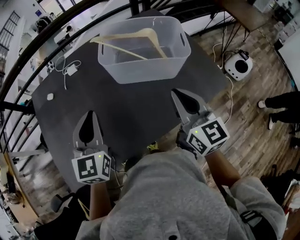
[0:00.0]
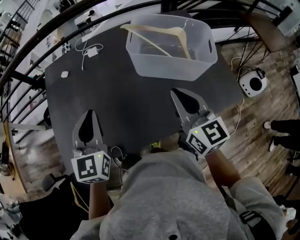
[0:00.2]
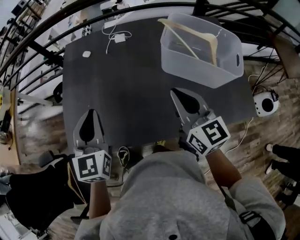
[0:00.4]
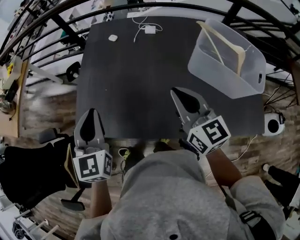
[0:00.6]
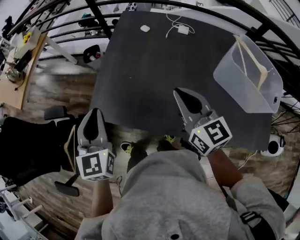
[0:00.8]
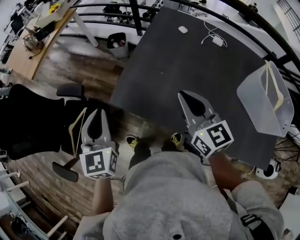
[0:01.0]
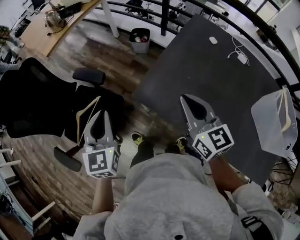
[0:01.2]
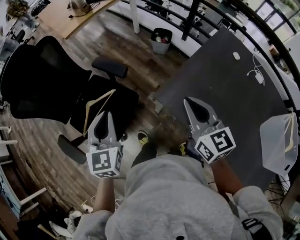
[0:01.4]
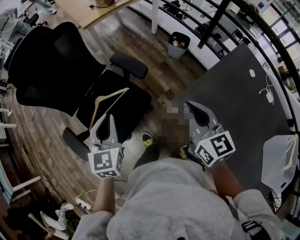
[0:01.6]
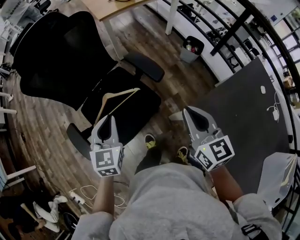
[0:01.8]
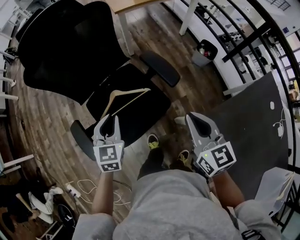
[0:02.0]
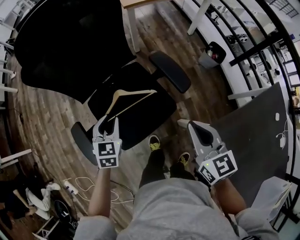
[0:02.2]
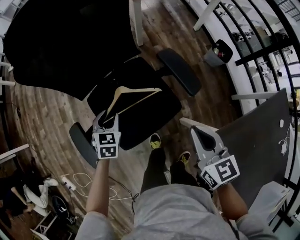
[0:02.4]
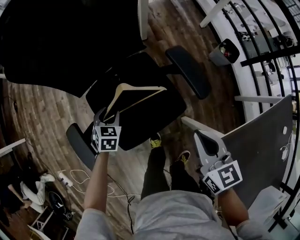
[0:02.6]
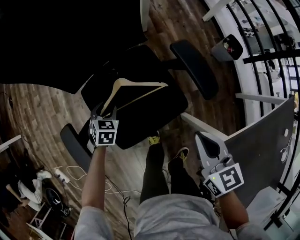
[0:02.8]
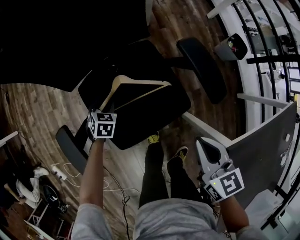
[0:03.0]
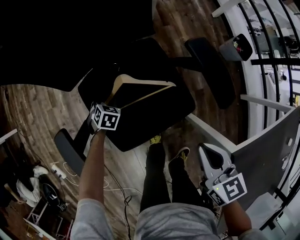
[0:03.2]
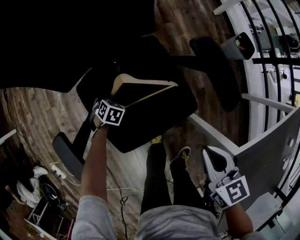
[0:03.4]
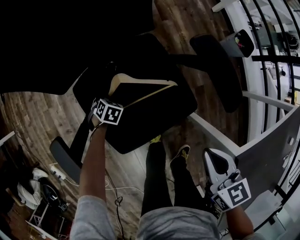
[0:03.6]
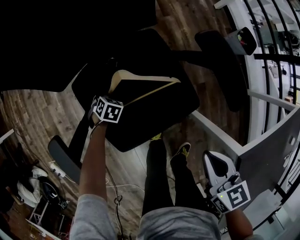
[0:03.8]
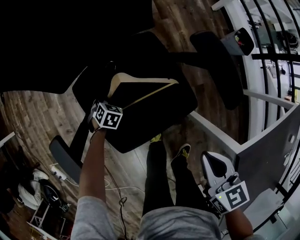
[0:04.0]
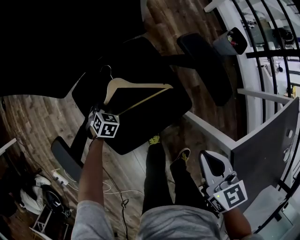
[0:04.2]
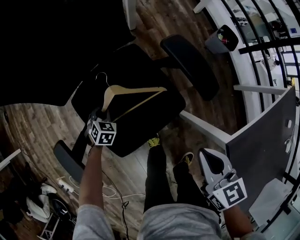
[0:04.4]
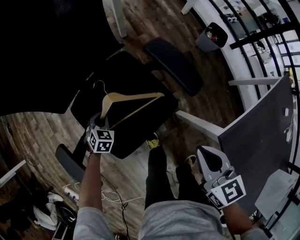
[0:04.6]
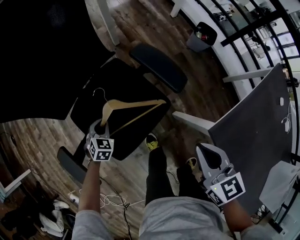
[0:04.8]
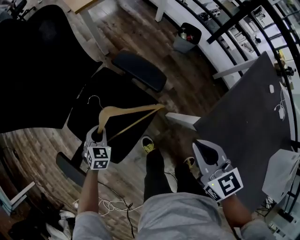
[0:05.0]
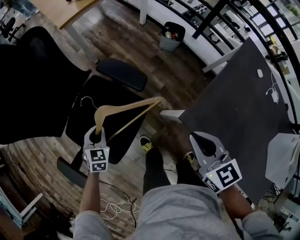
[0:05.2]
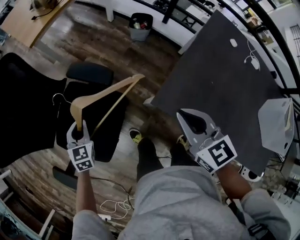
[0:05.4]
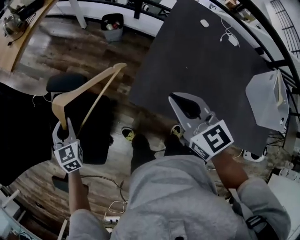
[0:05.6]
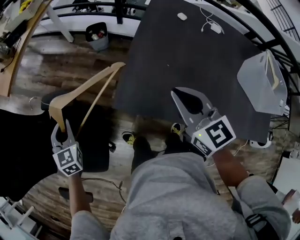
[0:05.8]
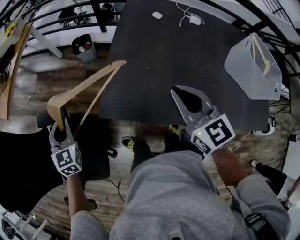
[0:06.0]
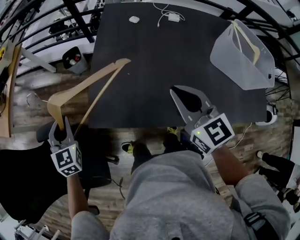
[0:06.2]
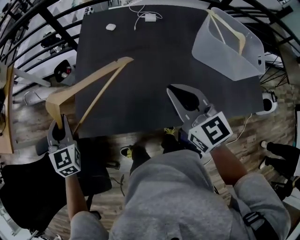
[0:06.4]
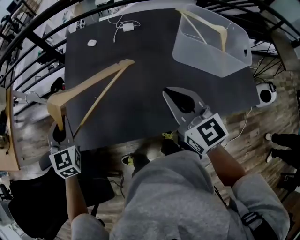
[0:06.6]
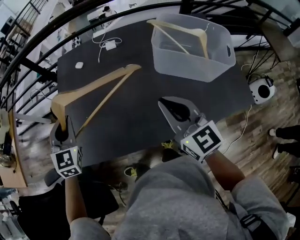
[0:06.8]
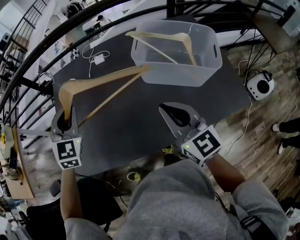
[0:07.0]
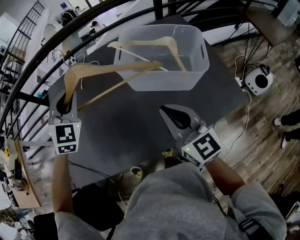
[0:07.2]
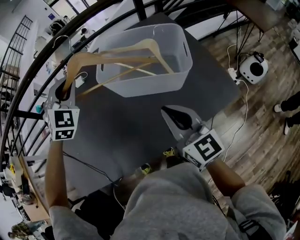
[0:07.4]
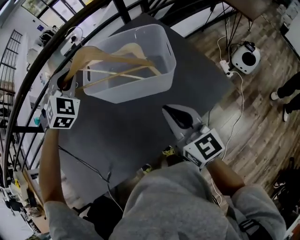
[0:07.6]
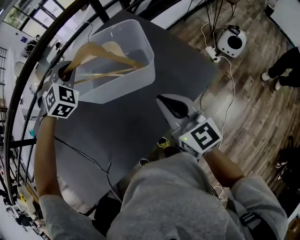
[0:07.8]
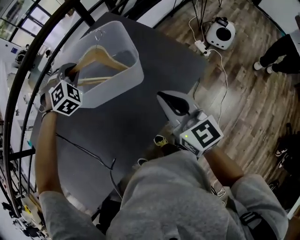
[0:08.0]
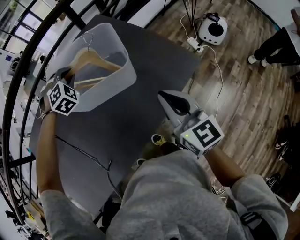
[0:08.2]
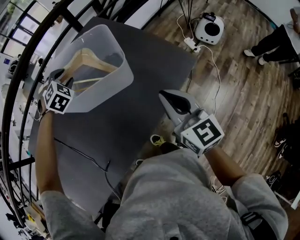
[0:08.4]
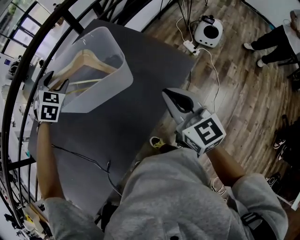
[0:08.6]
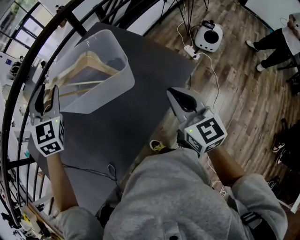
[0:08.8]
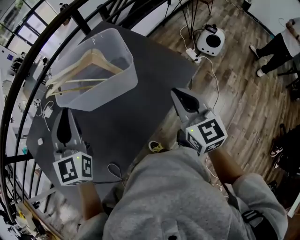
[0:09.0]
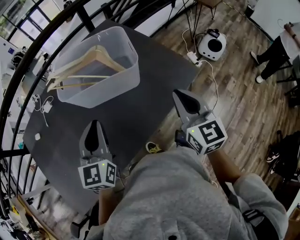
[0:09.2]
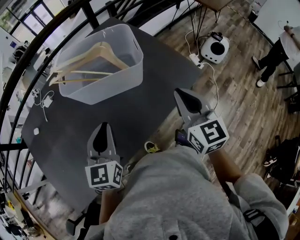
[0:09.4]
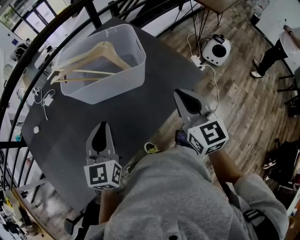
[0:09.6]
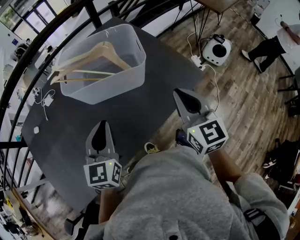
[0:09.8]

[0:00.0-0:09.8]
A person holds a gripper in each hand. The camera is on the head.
0:00.0 to 0:01.4: The pair of grippers is taken about 70 cm. The left gripper turns by some 70 degrees. The right gripper turns by some 70 degrees.
0:01.4 to 0:02.8: The right gripper ends up approximately 35 cm from where it was, and turns by roughly 40 degrees. Meanwhile the left gripper shifts roughly 40 cm downward, tips its fingers downward by some 40 degrees, and opens its fingers.
0:02.8 to 0:04.2: The right gripper is displaced downward by some 5 cm, while the left gripper is displaced downward by approximately 15 cm, and closes its fingers.
0:04.2 to 0:05.6: The left gripper goes approximately 35 cm upward, and angles its fingers upward, by approximately 30 degrees; the right gripper ends up some 35 cm from where it was, and turns by roughly 40 degrees.
0:05.6 to 0:07.0: The two grippers travel together, about 60 cm. The left gripper rotates roughly 60 degrees. The right gripper changes its angle by roughly 40 degrees.
0:07.0 to 0:08.4: The left gripper shifts by some 50 cm, rotates around the line of its fingers by some 40 degrees, clockwise from behind, and opens, while the right gripper moves some 30 cm, and turns by roughly 40 degrees.
0:08.4 to 0:09.8: The left gripper moves backward, roughly 30 cm, rolls counterclockwise, seen from behind, by approximately 70 degrees, and closes its fingers.

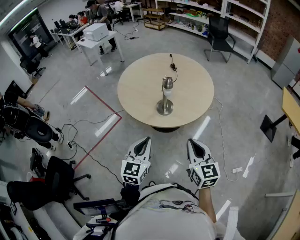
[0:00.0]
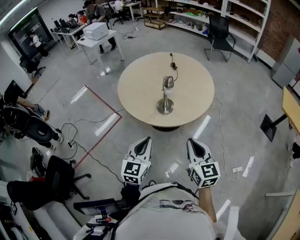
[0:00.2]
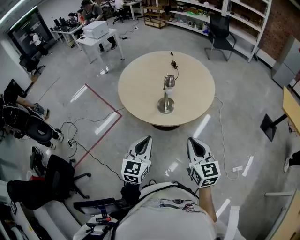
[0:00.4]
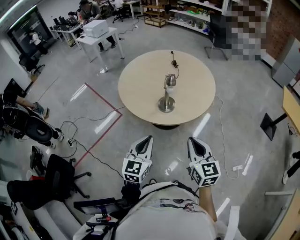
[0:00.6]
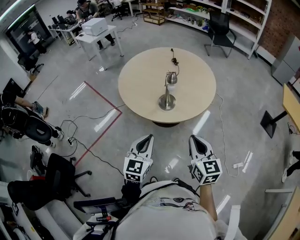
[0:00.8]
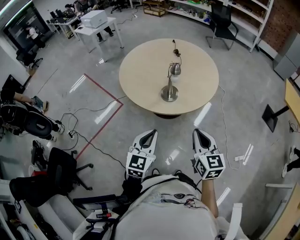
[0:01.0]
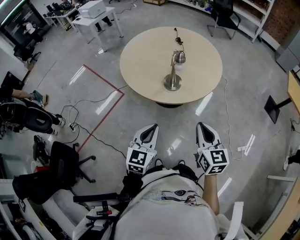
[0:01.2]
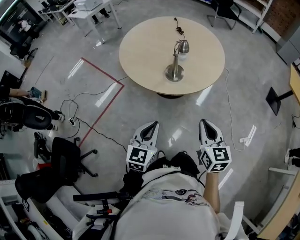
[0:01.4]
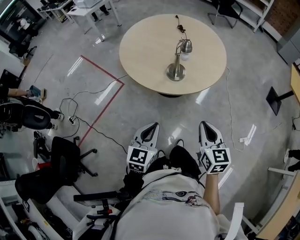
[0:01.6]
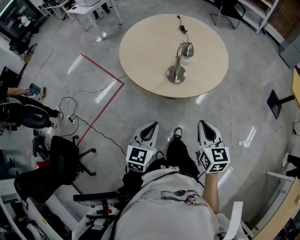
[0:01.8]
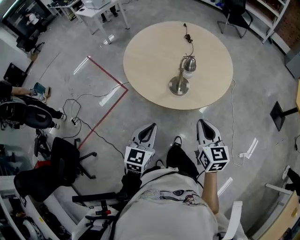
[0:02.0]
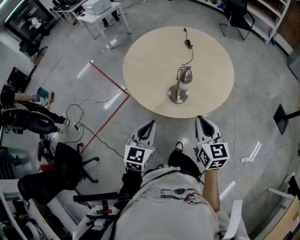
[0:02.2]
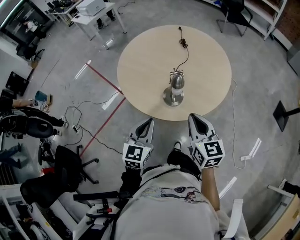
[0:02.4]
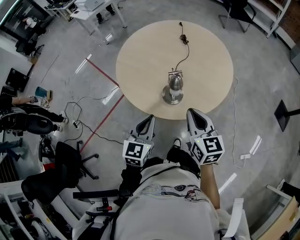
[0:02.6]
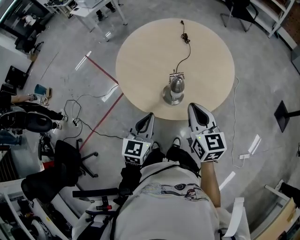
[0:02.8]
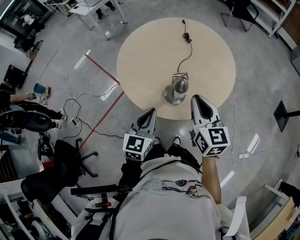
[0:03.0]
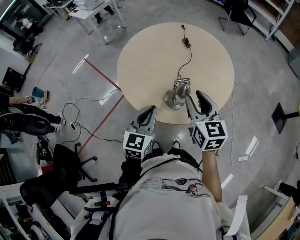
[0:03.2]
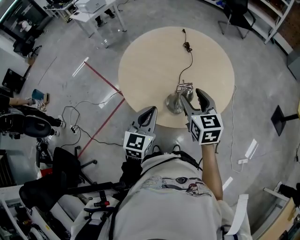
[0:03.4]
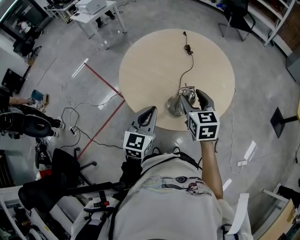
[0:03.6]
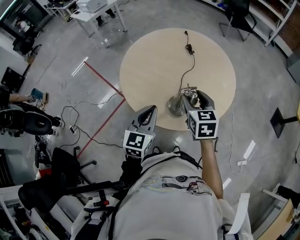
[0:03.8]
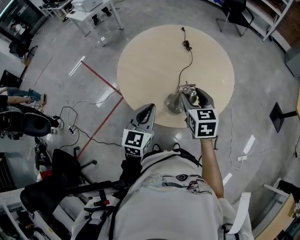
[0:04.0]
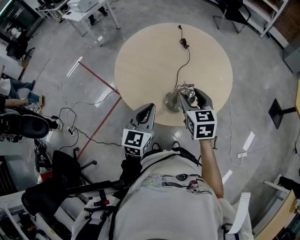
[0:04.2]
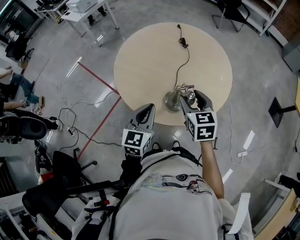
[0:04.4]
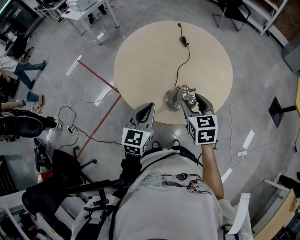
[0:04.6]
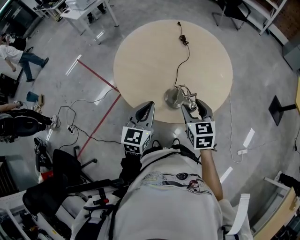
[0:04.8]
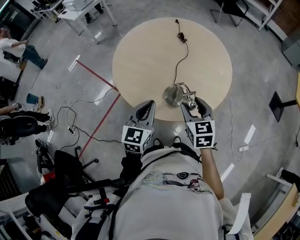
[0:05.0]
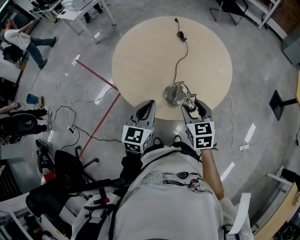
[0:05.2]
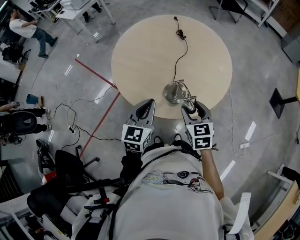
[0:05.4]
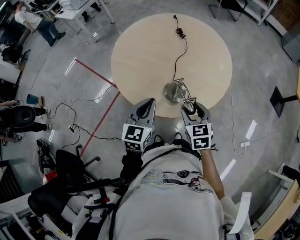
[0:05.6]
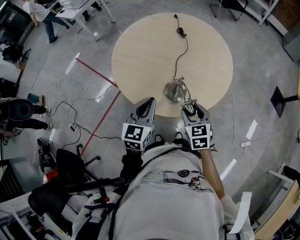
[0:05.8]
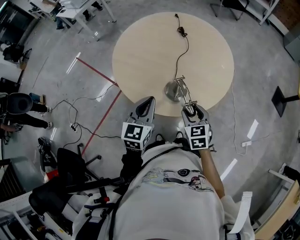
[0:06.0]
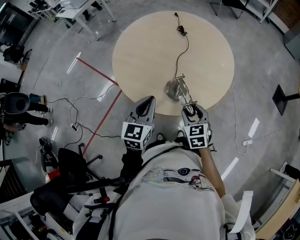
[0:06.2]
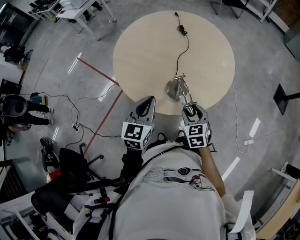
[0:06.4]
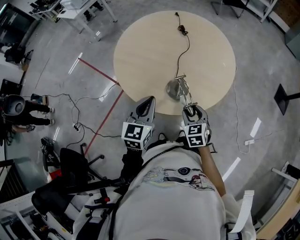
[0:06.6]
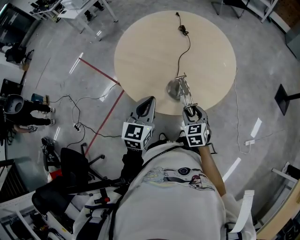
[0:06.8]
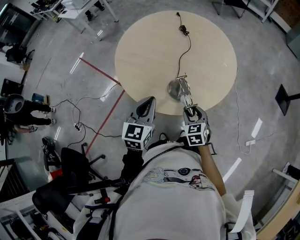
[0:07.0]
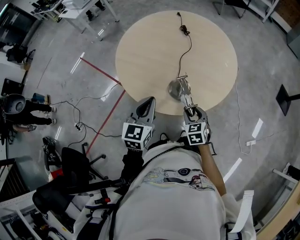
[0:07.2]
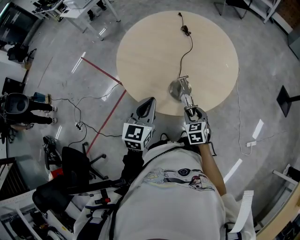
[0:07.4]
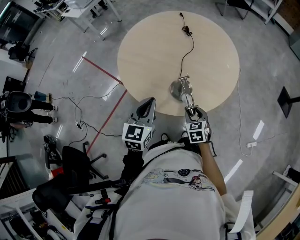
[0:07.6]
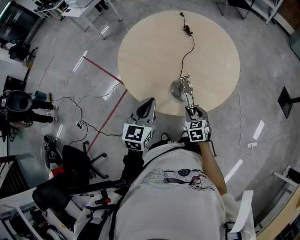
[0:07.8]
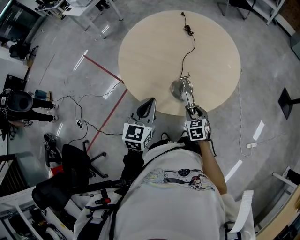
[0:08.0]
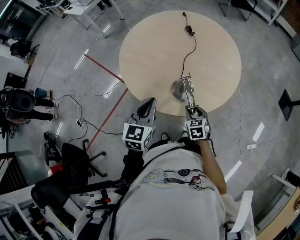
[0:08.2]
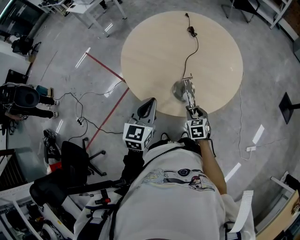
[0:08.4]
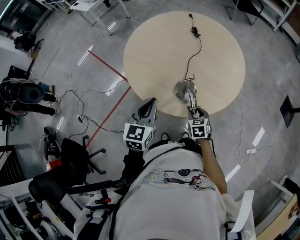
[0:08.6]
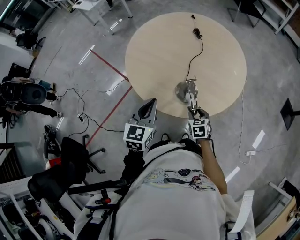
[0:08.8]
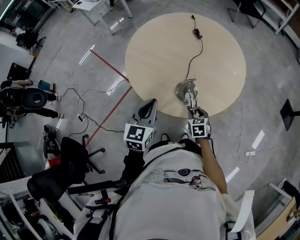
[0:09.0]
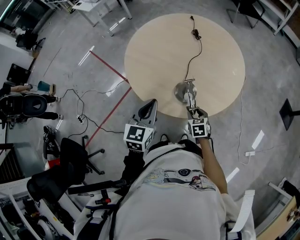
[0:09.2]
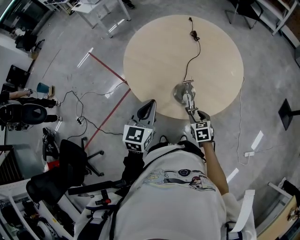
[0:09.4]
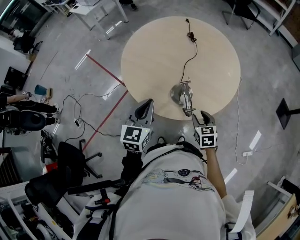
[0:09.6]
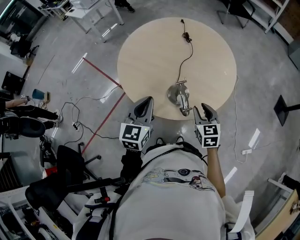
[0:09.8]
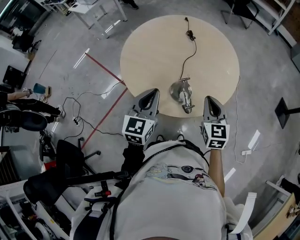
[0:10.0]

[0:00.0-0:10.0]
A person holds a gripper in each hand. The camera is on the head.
0:00.0 to 0:01.4: The right gripper shifts by roughly 5 cm. The left gripper shifts approximately 5 cm to the left and downward.
0:01.4 to 0:02.8: The grippers both shift forward by roughly 25 cm.
0:02.8 to 0:04.2: The right gripper heads forward and to the left, covering approximately 10 cm, and opens up; the left gripper shifts some 5 cm forward.
0:04.2 to 0:05.8: The right gripper goes some 15 cm downward and backward.
0:05.8 to 0:07.2: The right gripper shifts about 10 cm downward.
0:07.2 to 0:08.6: The right gripper moves downward, about 5 cm.
0:08.6 to 0:10.0: The left gripper changes place by about 5 cm. Meanwhile the right gripper heads upward, covering some 20 cm, changes its angle by approximately 30 degrees, and closes.

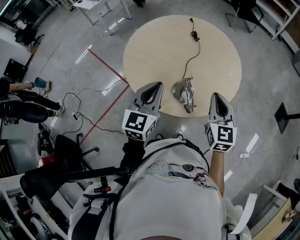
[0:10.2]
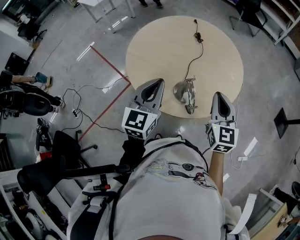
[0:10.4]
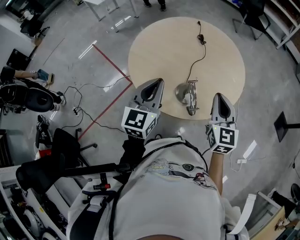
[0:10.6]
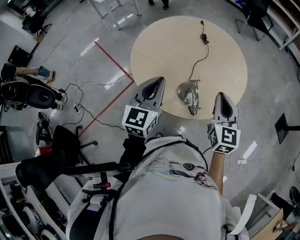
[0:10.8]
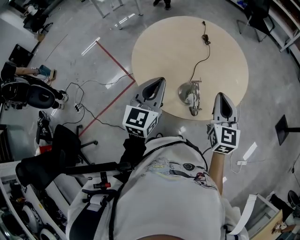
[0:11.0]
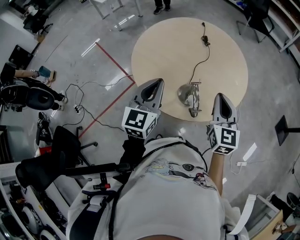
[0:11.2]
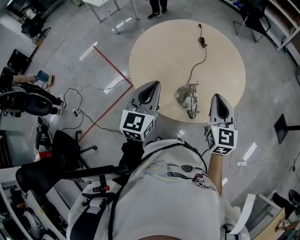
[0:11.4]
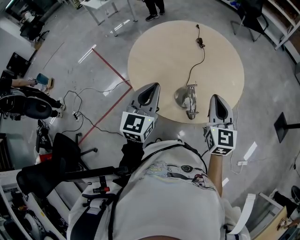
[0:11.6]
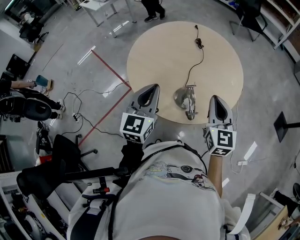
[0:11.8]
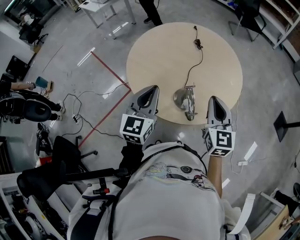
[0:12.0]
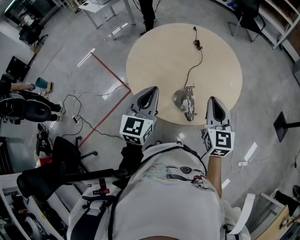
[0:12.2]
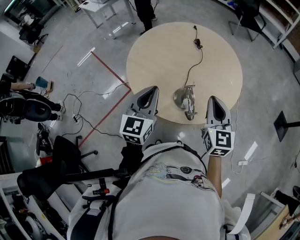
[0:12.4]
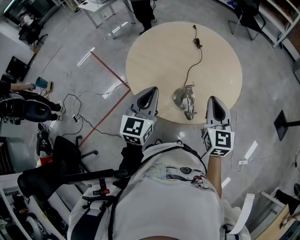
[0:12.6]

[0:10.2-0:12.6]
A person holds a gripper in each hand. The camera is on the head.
0:10.2 to 0:12.6: The grippers move only a little.

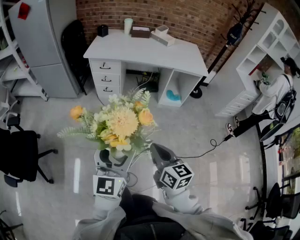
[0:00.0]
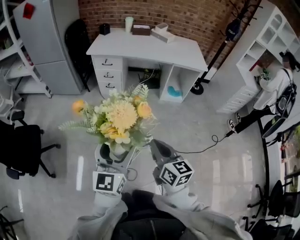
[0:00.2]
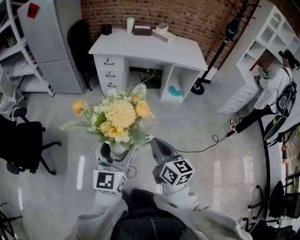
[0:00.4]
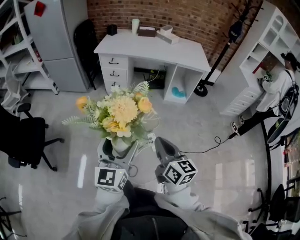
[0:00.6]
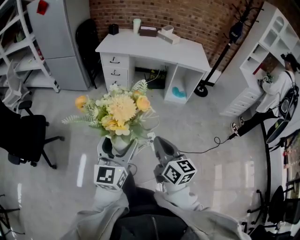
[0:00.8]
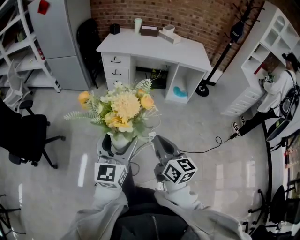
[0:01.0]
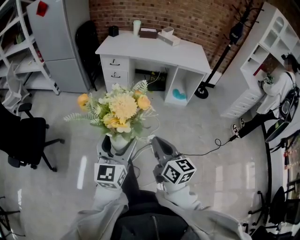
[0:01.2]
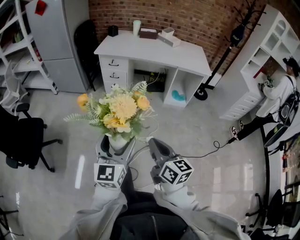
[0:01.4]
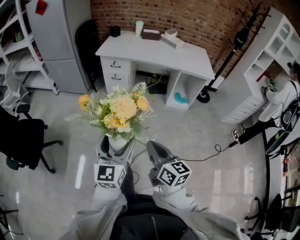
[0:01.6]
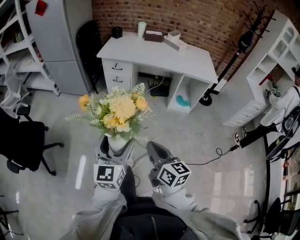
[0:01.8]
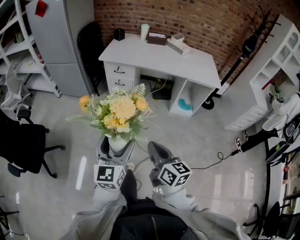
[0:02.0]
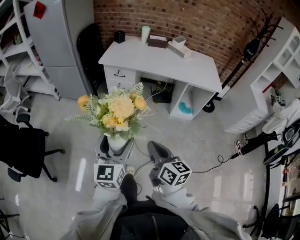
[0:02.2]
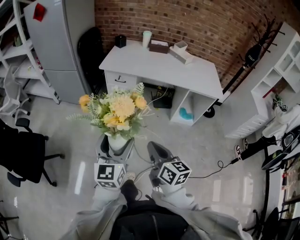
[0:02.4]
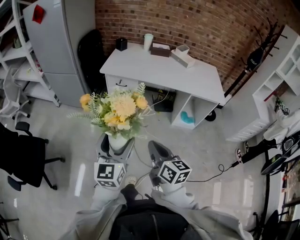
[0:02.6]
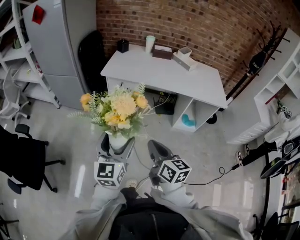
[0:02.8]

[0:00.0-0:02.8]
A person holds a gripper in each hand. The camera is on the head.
0:00.0 to 0:01.4: Both grippers move backward, about 10 cm.
0:01.4 to 0:02.8: Both grippers travel together forward, approximately 30 cm.
